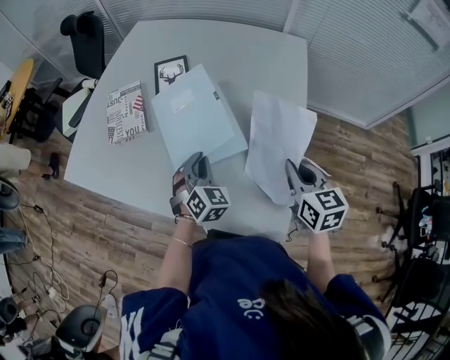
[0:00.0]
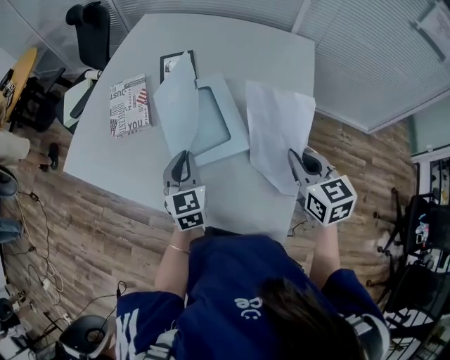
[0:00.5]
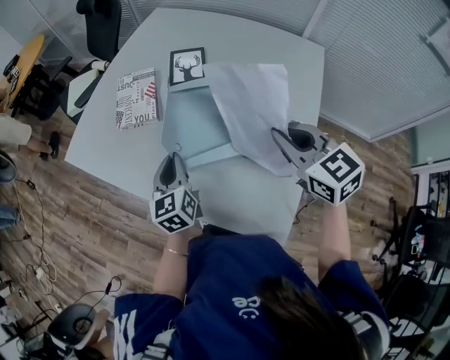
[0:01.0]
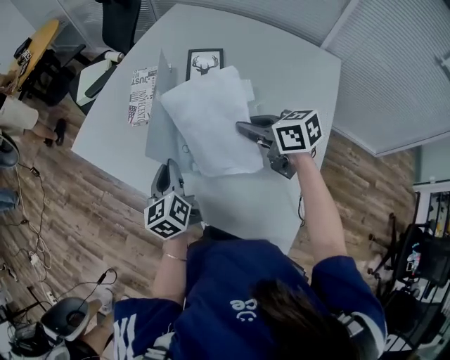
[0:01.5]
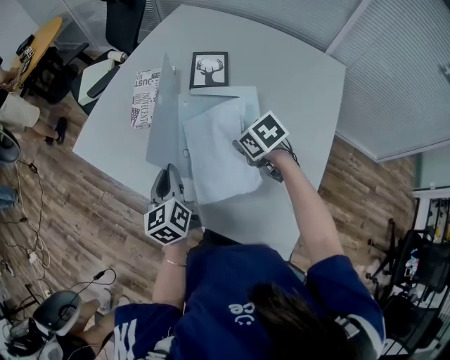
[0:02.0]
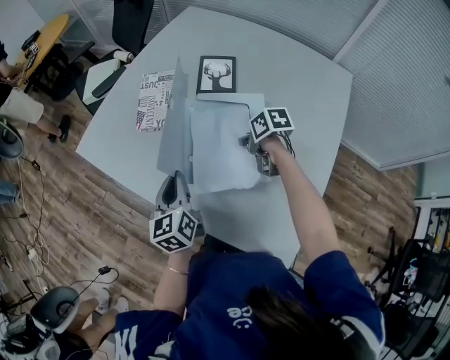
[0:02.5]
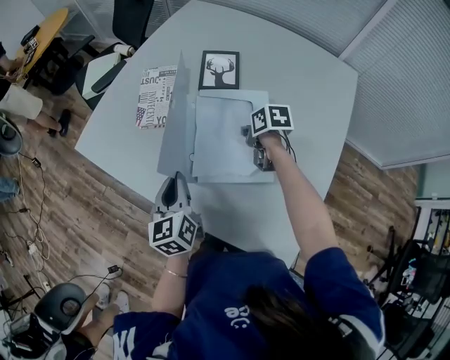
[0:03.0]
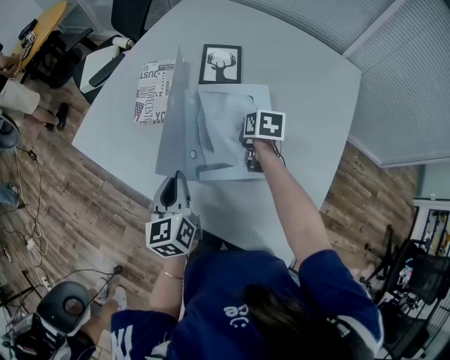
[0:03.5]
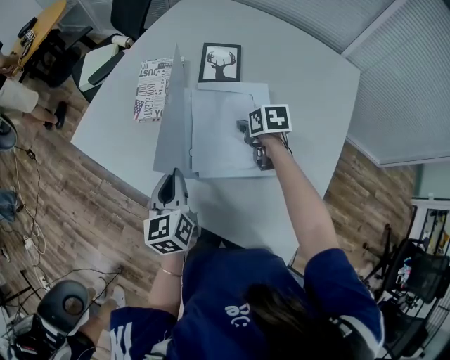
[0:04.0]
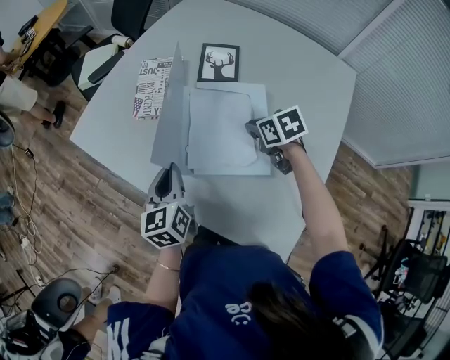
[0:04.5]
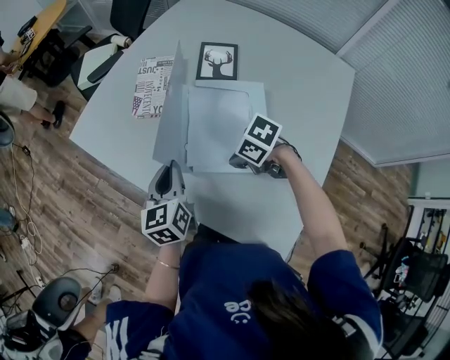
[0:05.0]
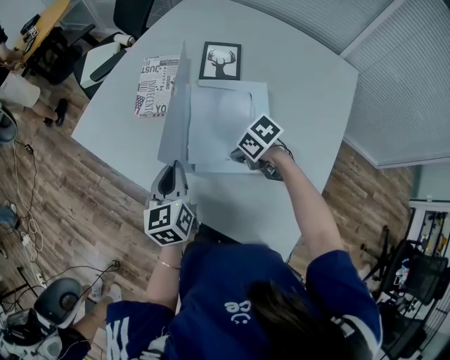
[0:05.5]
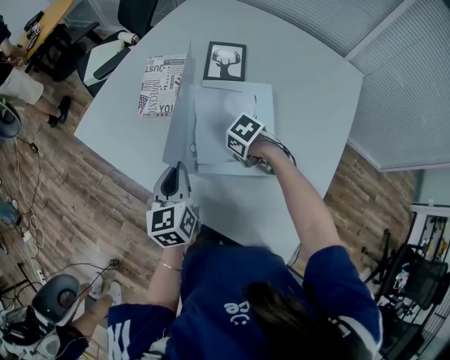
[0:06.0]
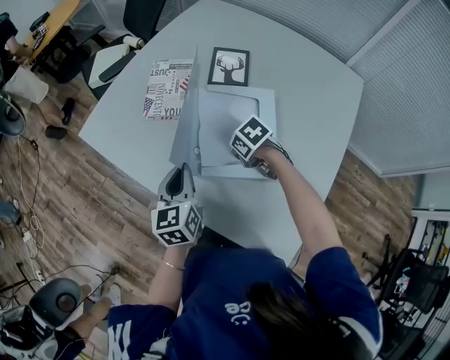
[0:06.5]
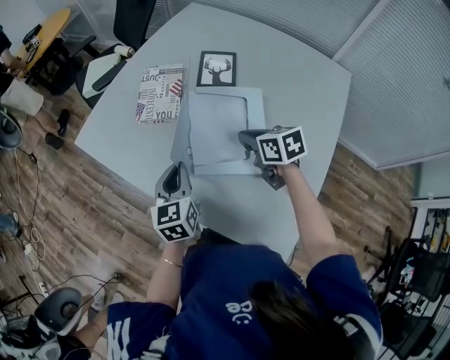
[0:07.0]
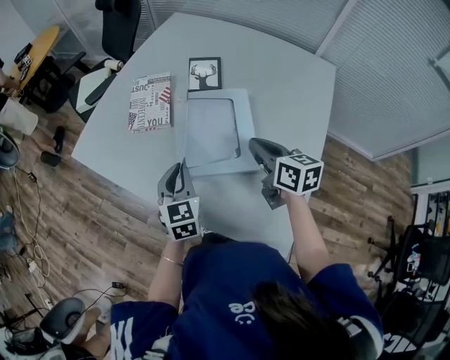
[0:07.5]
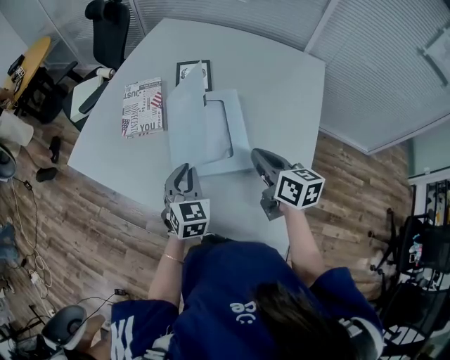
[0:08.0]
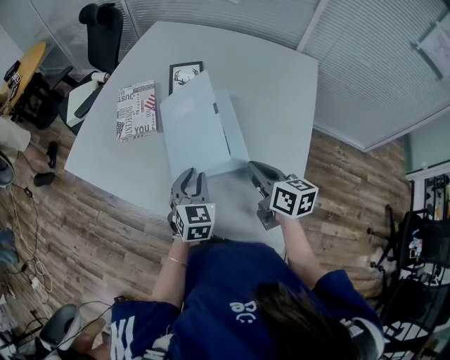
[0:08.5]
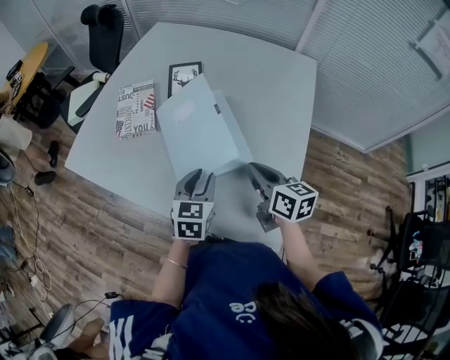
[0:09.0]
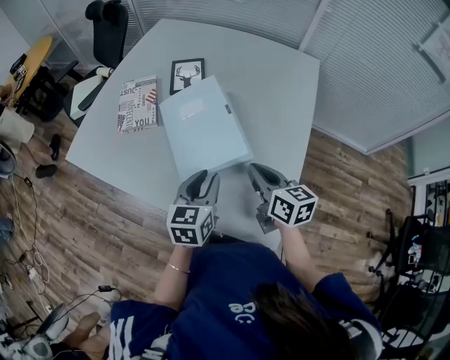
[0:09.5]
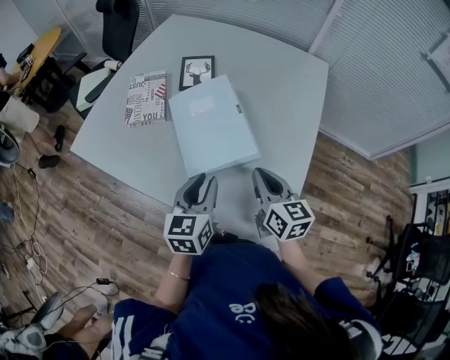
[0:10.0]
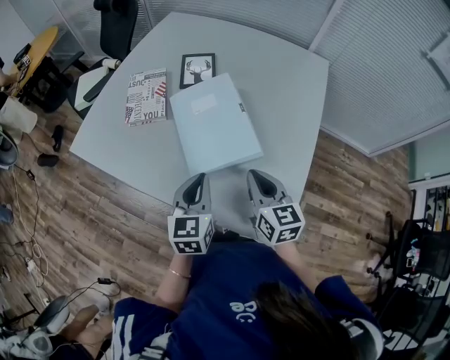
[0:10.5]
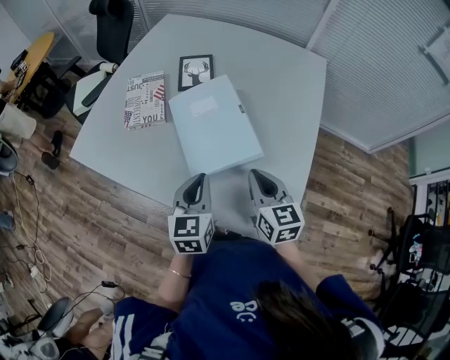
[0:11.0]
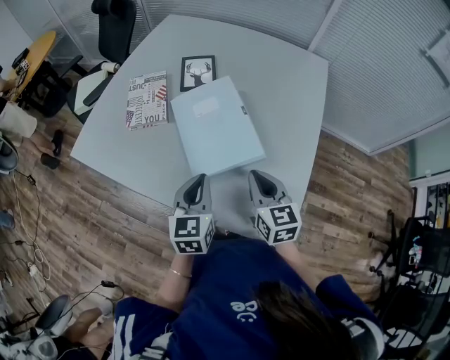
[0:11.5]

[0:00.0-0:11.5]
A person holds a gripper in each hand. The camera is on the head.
0.0 to 2.0 s: The left gripper moves about 20 cm, and rotates around the line of its fingers by roughly 70 degrees, counterclockwise from behind. The right gripper shifts by approximately 25 cm, and points its fingers some 30 degrees further downward.
2.0 to 4.0 s: The right gripper moves about 10 cm, changes its angle by some 30 degrees, and opens.
4.0 to 6.0 s: The right gripper moves roughly 15 cm, rotates approximately 50 degrees, and closes up.
6.0 to 7.5 s: The right gripper is displaced upward by some 20 cm, and tips its fingers upward by roughly 50 degrees; the left gripper changes its angle by approximately 20 degrees.
7.5 to 9.5 s: The right gripper is displaced backward by about 10 cm. The left gripper travels to the right and backward by roughly 15 cm, changes its angle by about 30 degrees, and opens up.
9.5 to 11.5 s: The right gripper rotates some 20 degrees; the left gripper is displaced to the left by some 5 cm, and closes.

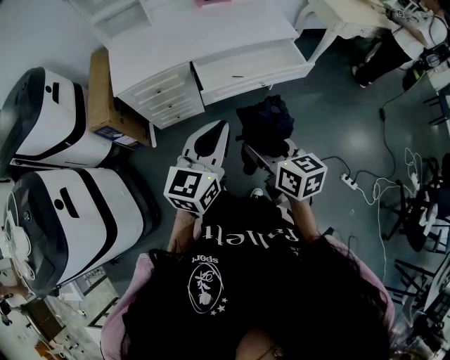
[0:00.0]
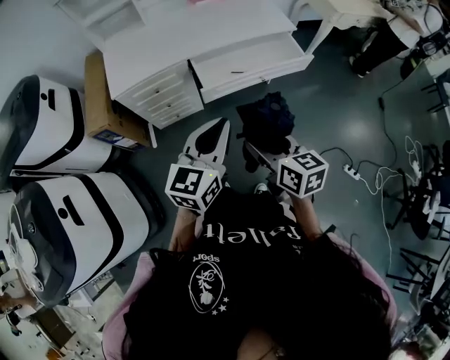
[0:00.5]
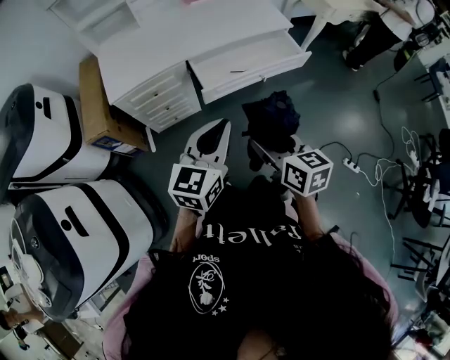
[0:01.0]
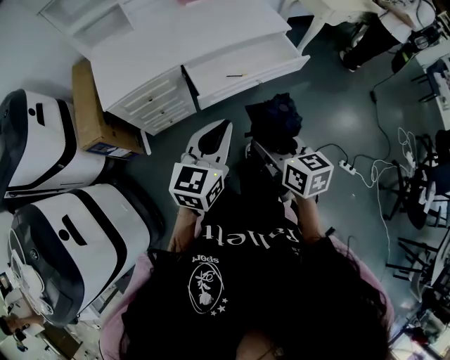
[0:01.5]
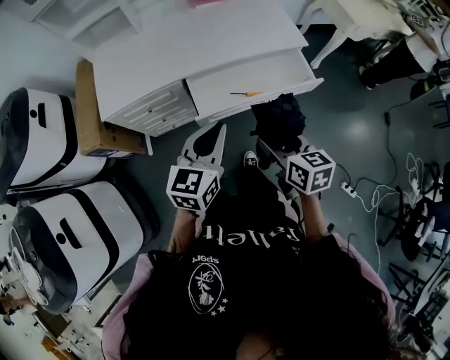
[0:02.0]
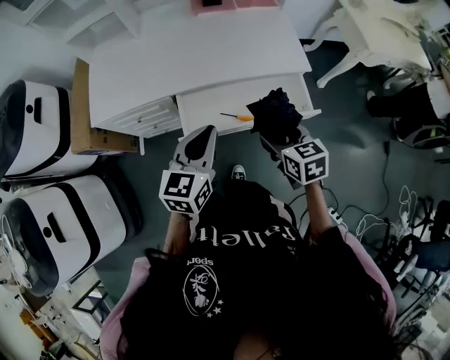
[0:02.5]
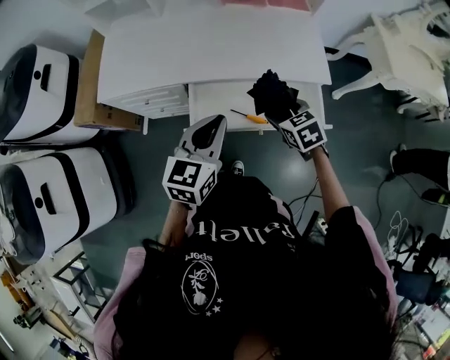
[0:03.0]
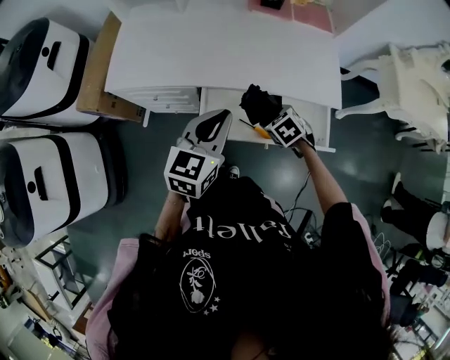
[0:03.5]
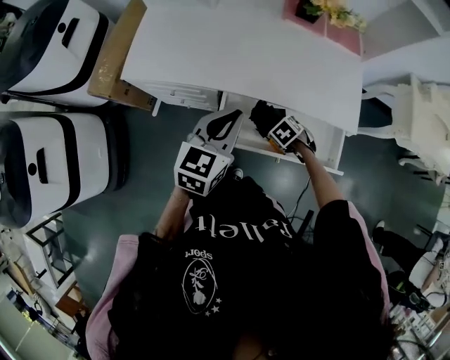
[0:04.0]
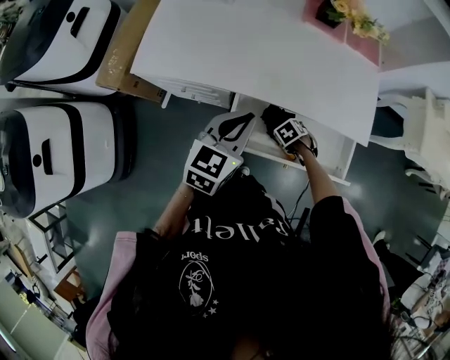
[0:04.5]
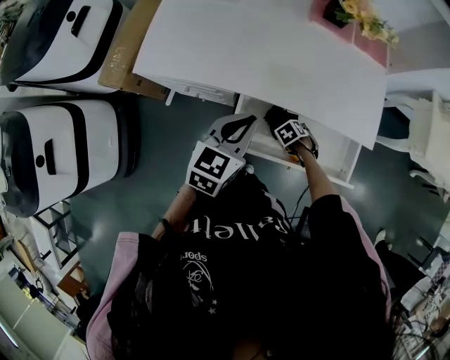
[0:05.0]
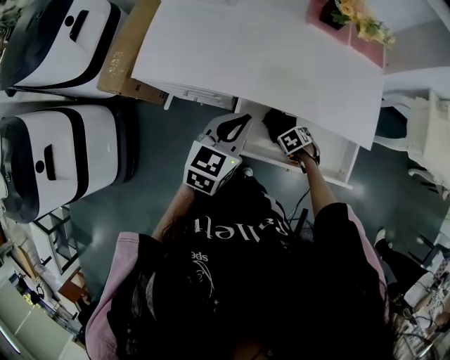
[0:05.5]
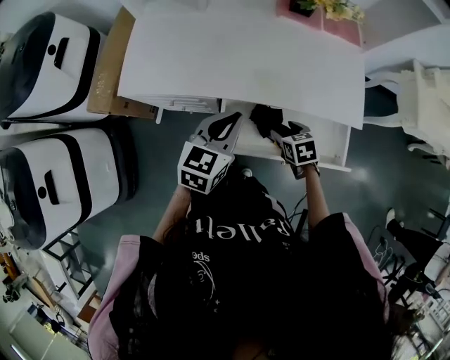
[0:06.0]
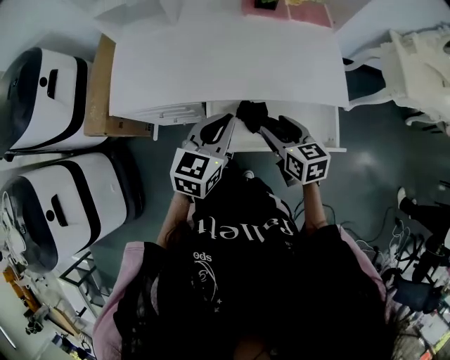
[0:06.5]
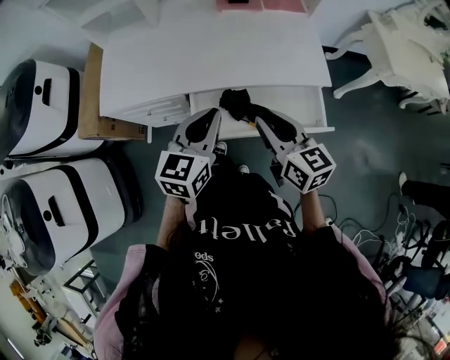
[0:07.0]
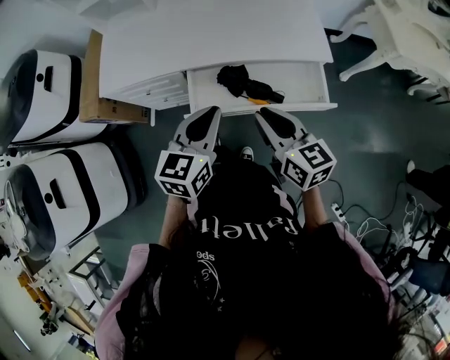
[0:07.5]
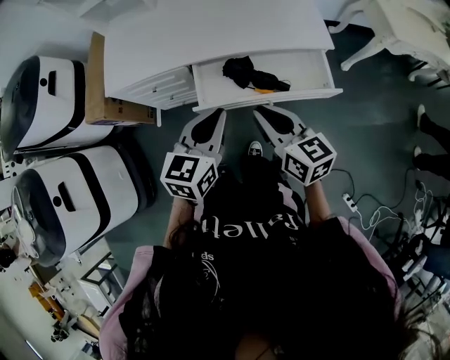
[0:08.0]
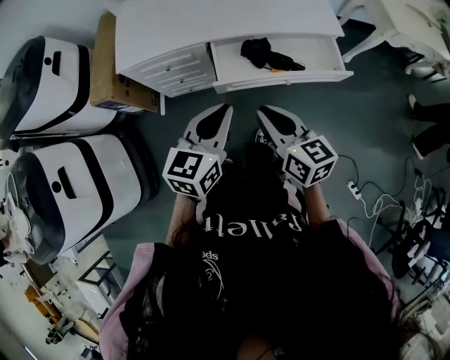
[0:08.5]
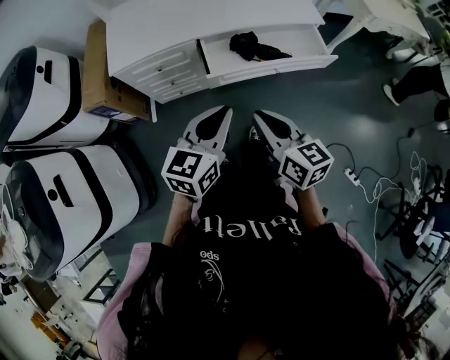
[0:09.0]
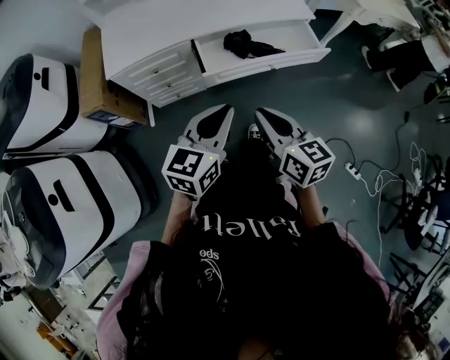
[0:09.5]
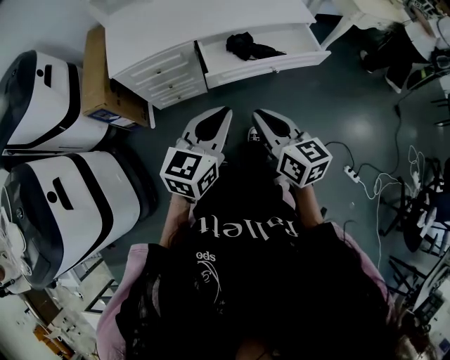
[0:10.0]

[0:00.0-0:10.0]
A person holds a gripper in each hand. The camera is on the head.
0.0 to 2.0 s: Both grippers move forward, roughly 20 cm.
2.0 to 4.0 s: The right gripper shifts by approximately 40 cm, and tilts its fingers some 50 degrees downward. The left gripper shifts by approximately 20 cm, and swivels roughly 20 degrees.
4.0 to 6.0 s: The left gripper changes place by about 5 cm, while the right gripper heads upward, covering approximately 5 cm, and rotates some 40 degrees.
6.0 to 8.0 s: The left gripper heads backward, covering approximately 20 cm, while the right gripper heads upward and backward, covering roughly 30 cm, tips its fingers upward by some 40 degrees, and closes.
8.0 to 10.0 s: Both grippers travel together backward and to the left, some 25 cm.

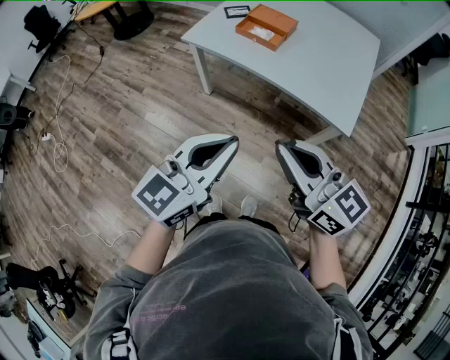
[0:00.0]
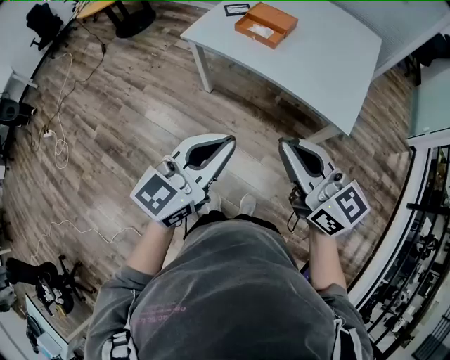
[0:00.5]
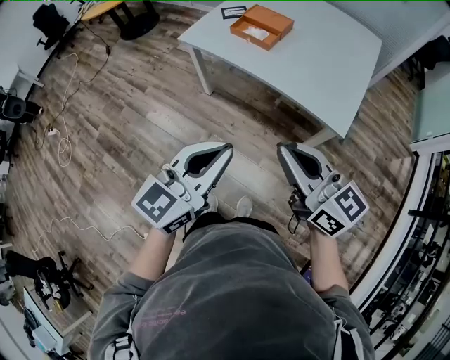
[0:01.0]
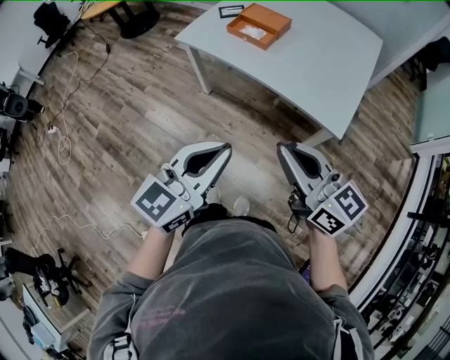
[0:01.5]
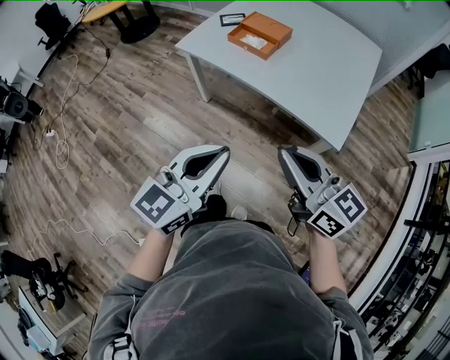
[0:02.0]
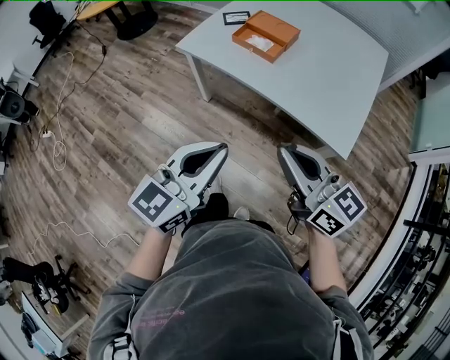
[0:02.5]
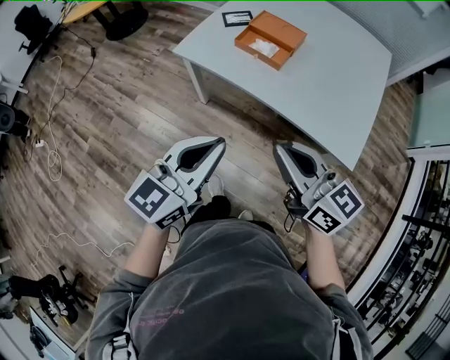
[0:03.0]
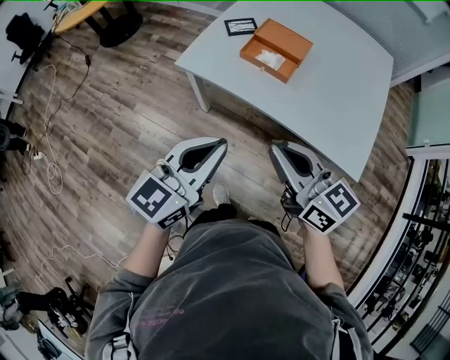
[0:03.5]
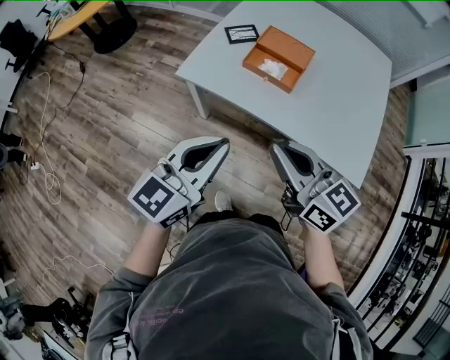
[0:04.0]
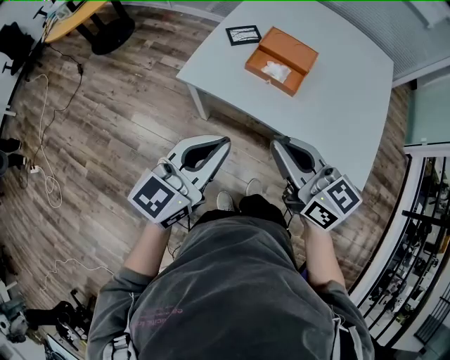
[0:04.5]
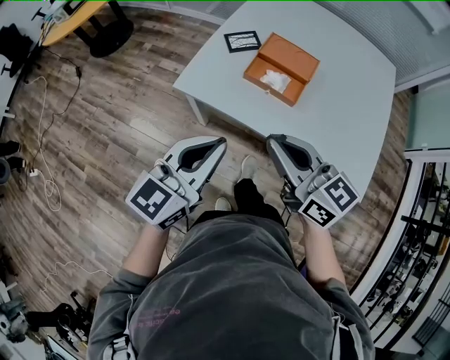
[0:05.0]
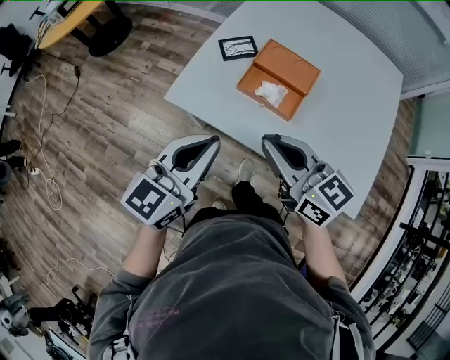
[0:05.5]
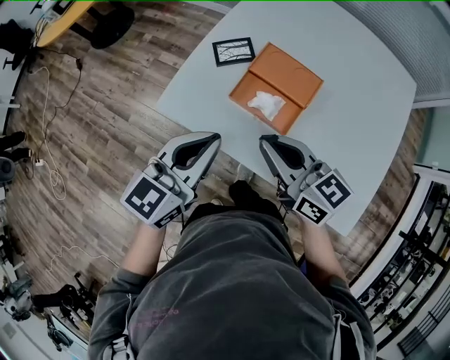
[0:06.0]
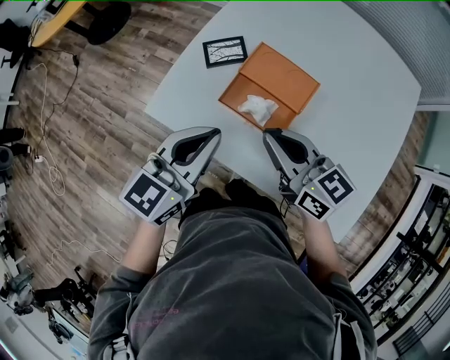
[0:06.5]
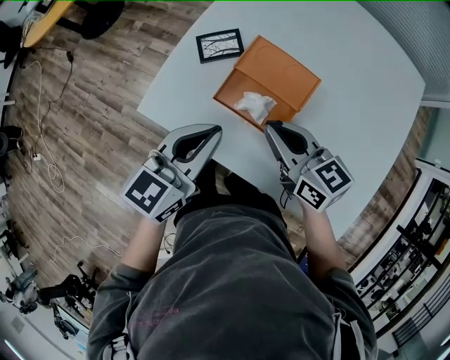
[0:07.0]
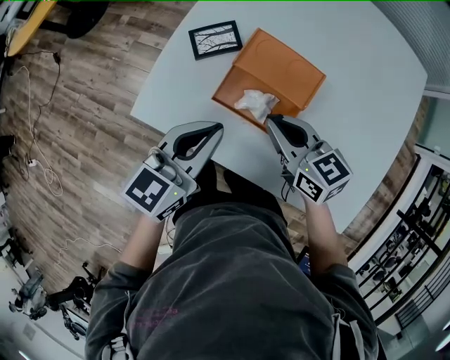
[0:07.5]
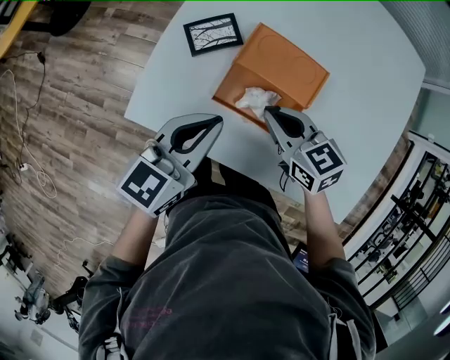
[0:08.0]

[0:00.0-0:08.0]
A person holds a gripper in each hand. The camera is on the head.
0.0 to 2.0 s: Both grippers travel together to the right, roughly 10 cm.
2.0 to 4.0 s: Both grippers move forward and to the left, some 35 cm.
4.0 to 6.0 s: Both grippers move forward, roughly 25 cm.
6.0 to 8.0 s: The left gripper moves forward and downward, approximately 15 cm. The right gripper is displaced downward and forward by approximately 20 cm, and changes its angle by some 20 degrees.
